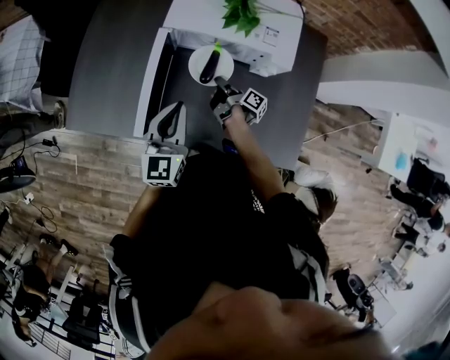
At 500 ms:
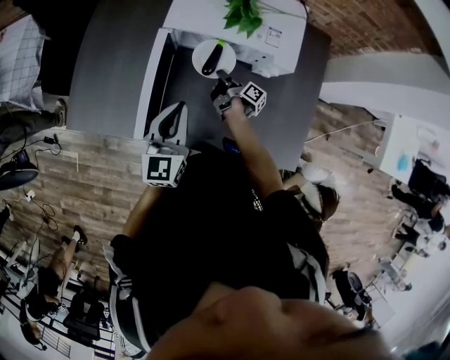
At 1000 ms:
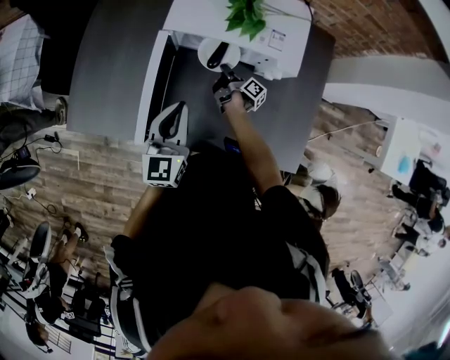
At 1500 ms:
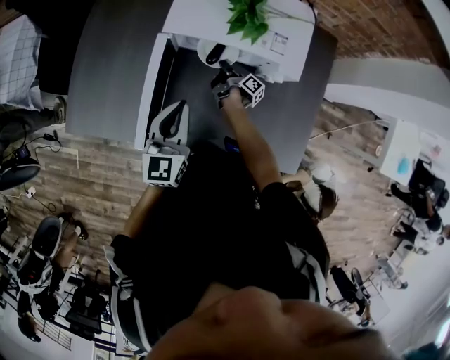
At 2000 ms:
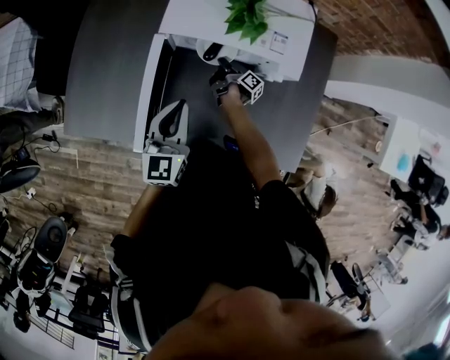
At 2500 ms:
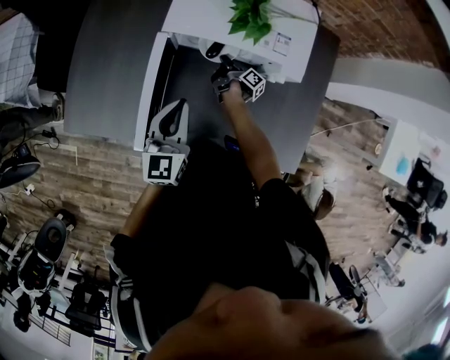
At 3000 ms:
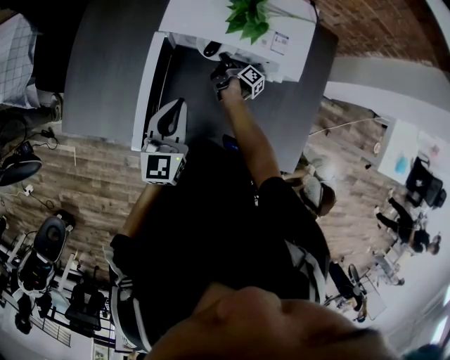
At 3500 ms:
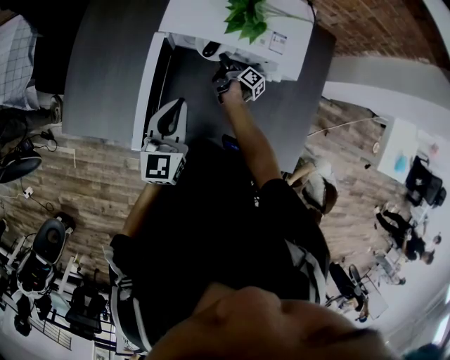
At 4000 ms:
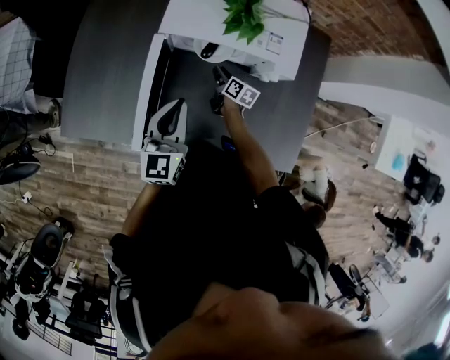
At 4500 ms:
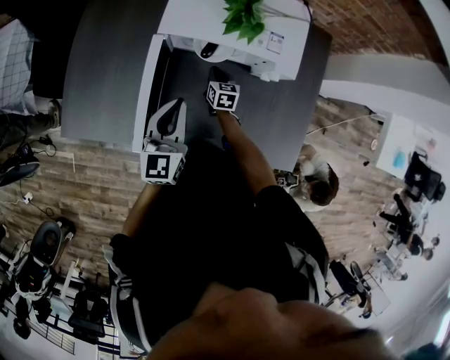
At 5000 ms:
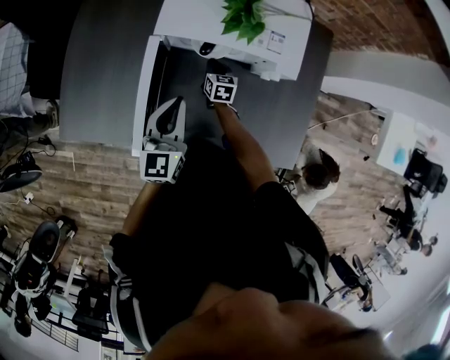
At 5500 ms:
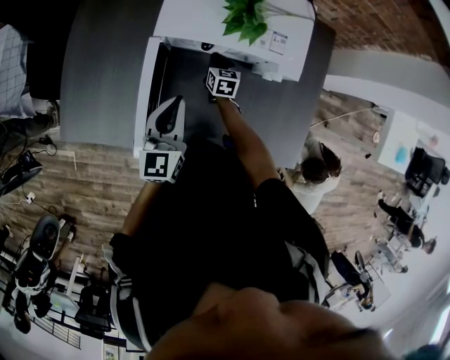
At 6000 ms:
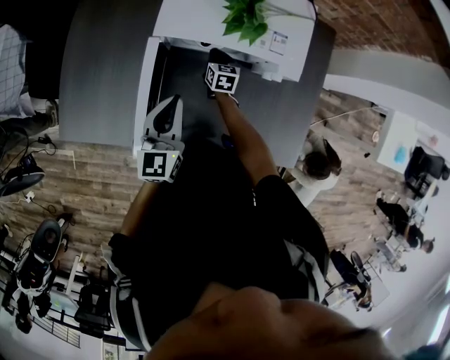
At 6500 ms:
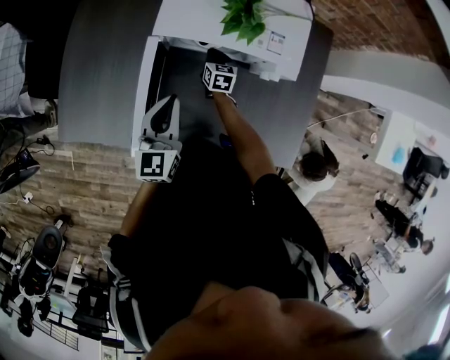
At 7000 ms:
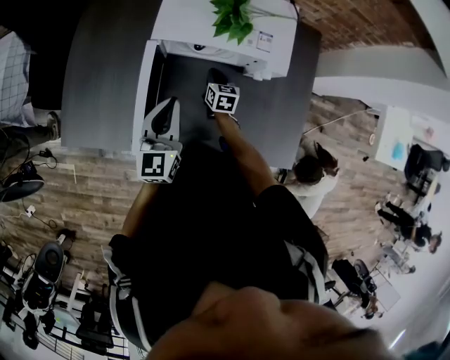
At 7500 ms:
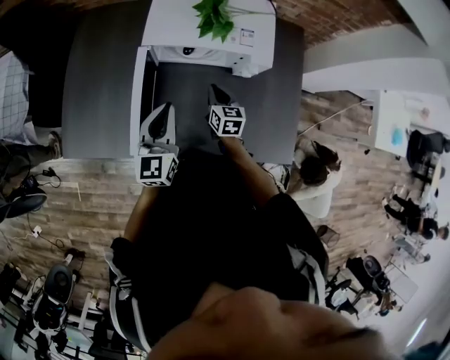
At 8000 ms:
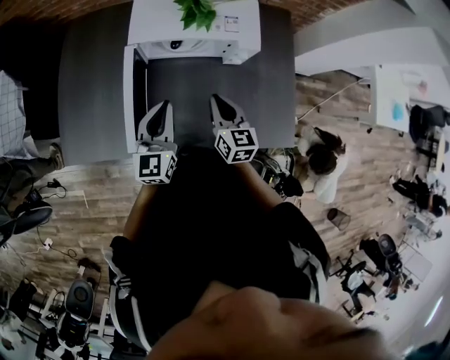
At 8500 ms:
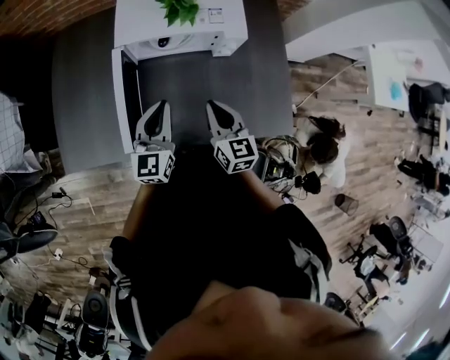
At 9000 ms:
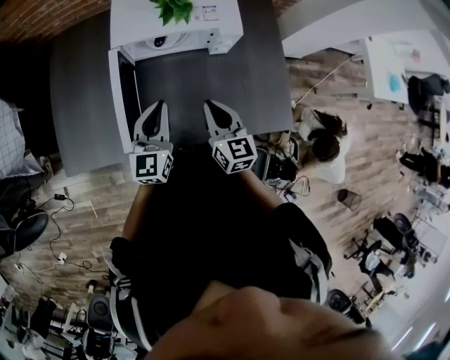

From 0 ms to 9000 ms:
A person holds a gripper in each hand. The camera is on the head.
From 7000 ms to 9000 ms: The left gripper changes place by roughly 10 cm.

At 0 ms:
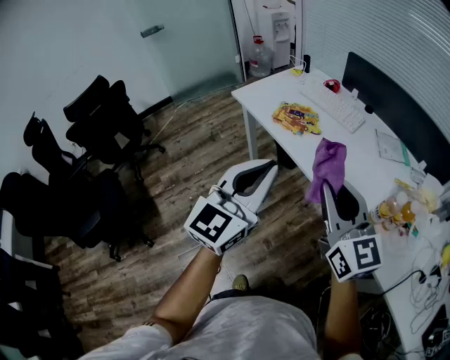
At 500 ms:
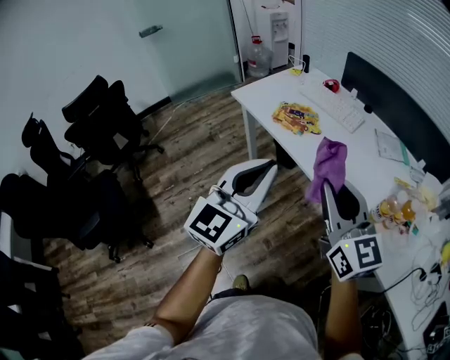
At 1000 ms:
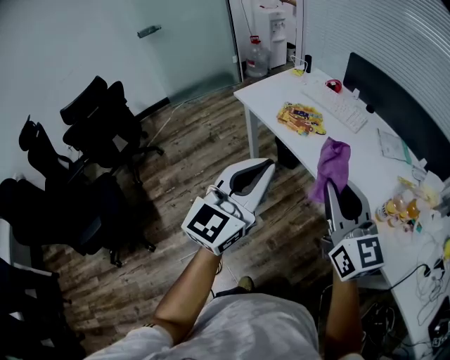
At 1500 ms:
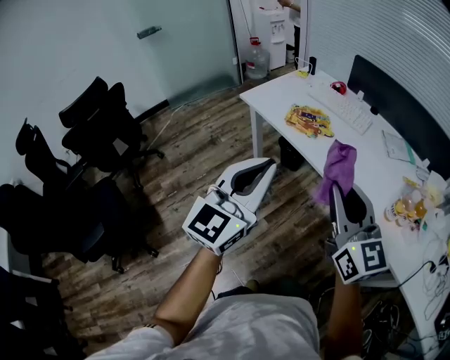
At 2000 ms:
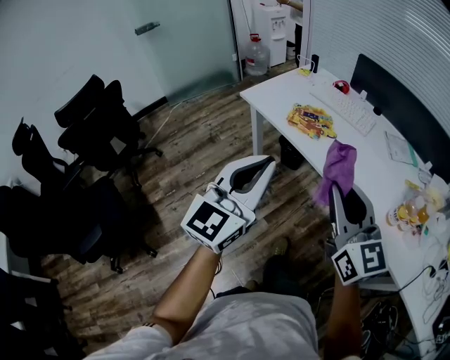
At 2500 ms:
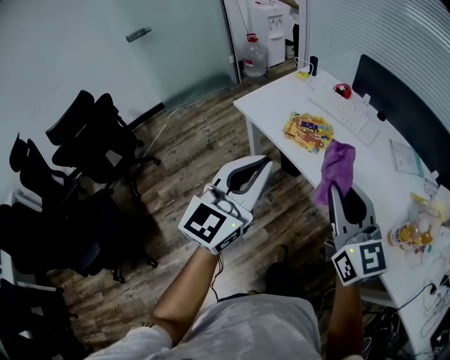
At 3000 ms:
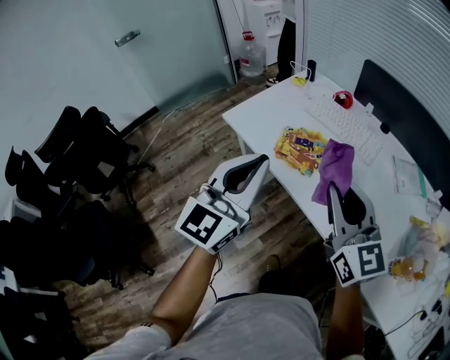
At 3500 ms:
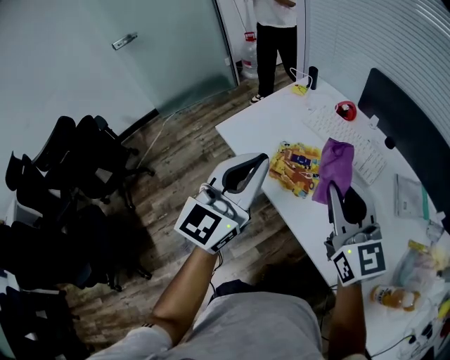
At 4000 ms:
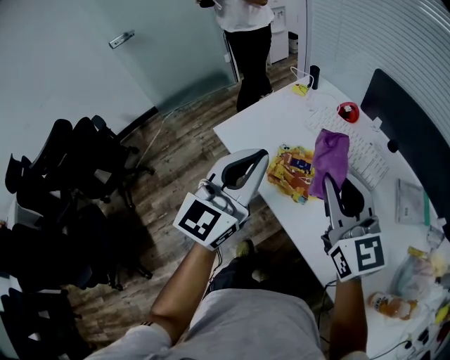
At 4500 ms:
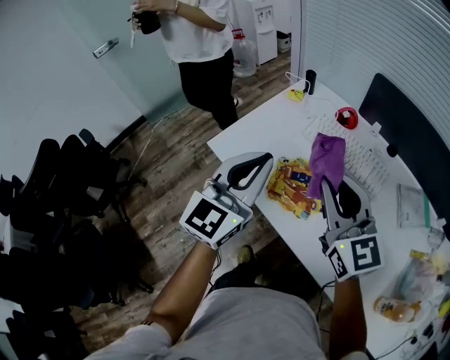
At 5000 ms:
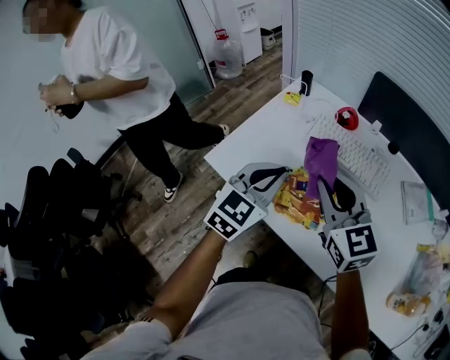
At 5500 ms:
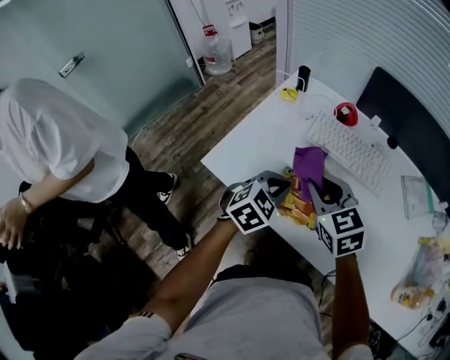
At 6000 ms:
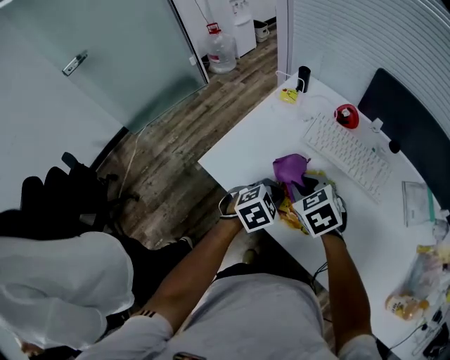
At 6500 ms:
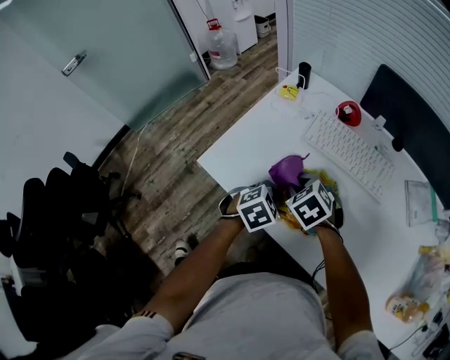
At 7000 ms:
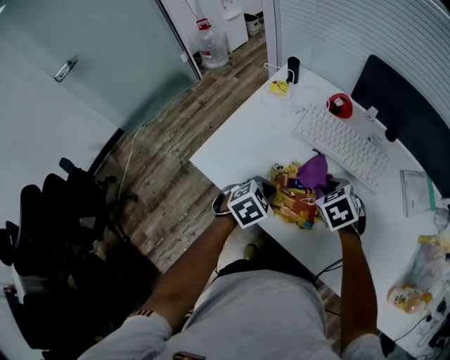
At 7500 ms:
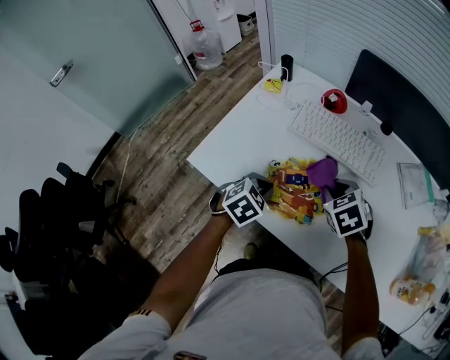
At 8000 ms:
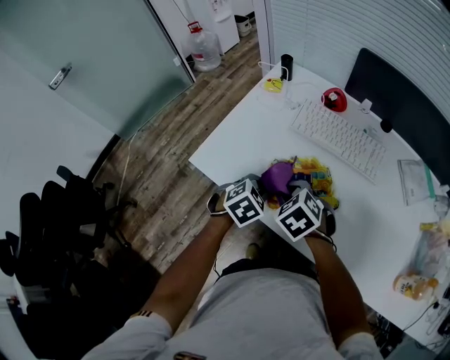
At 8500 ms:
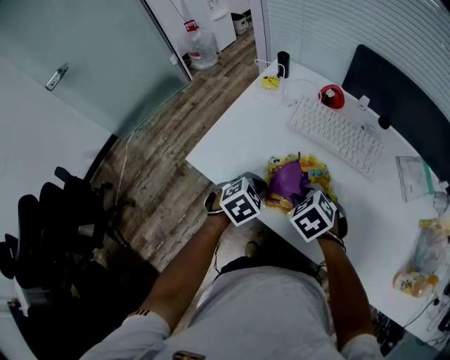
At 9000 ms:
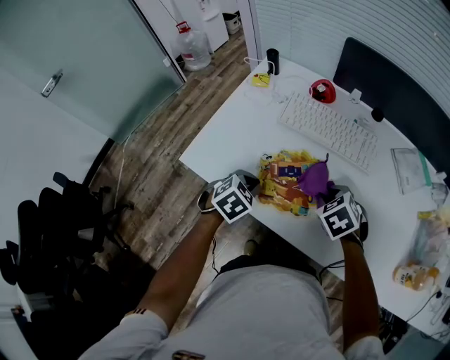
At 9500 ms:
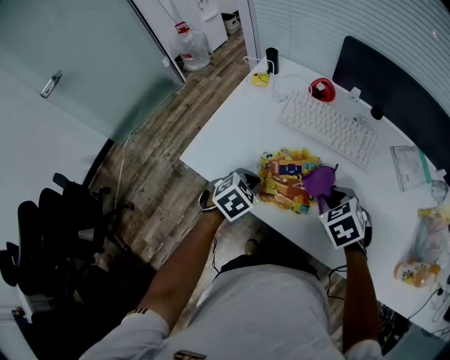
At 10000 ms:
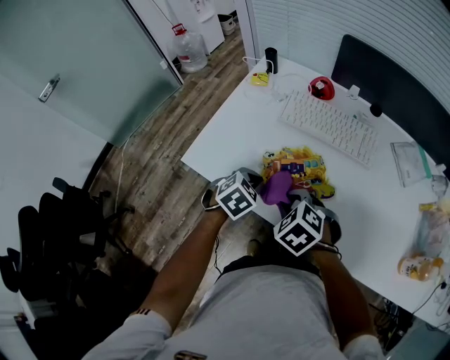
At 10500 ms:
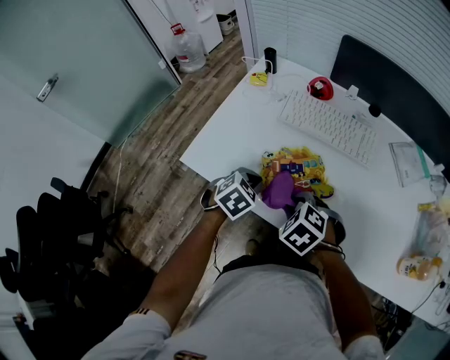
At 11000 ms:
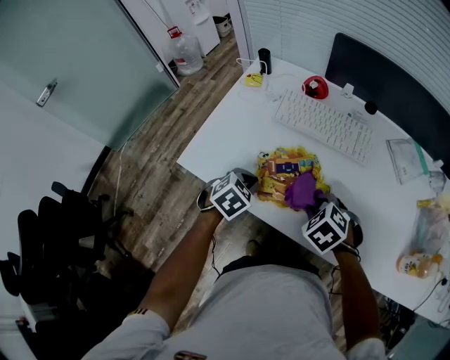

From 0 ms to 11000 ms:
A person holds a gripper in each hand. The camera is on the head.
From 0 ms to 2000 ms: The grippers both shift to the left by roughly 10 cm.
From 2000 ms to 3500 ms: The grippers both shift forward by approximately 30 cm.
From 3500 ms to 5500 ms: The left gripper is displaced downward and forward by about 30 cm, and points its fingers about 50 degrees further downward. The right gripper moves forward, downward and to the left, some 25 cm, and swivels approximately 30 degrees.
From 5500 ms to 7500 ms: The left gripper goes approximately 5 cm downward; the right gripper travels to the right and downward by roughly 15 cm, and rotates approximately 30 degrees.
From 7500 ms to 9000 ms: The right gripper travels to the left and back again, about 15 cm each way.
From 9000 ms to 11000 ms: The right gripper goes approximately 5 cm backward, and moves roughly 10 cm to the left and comes back.

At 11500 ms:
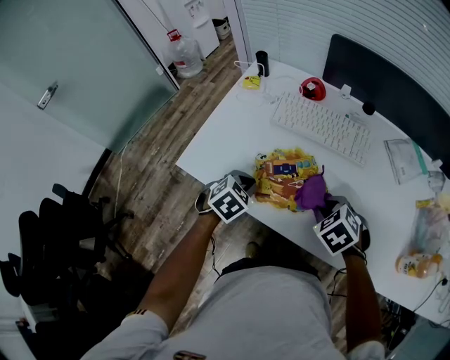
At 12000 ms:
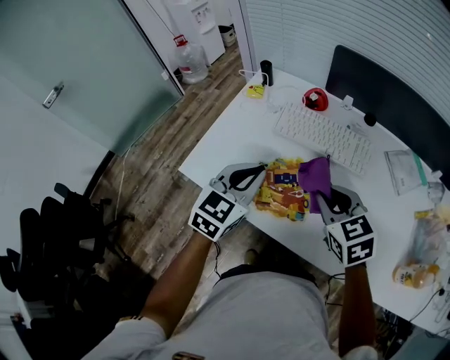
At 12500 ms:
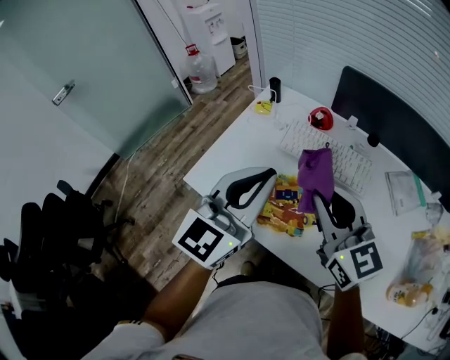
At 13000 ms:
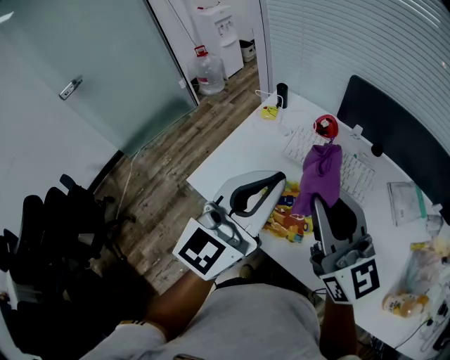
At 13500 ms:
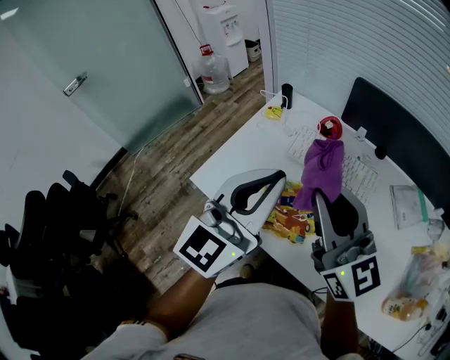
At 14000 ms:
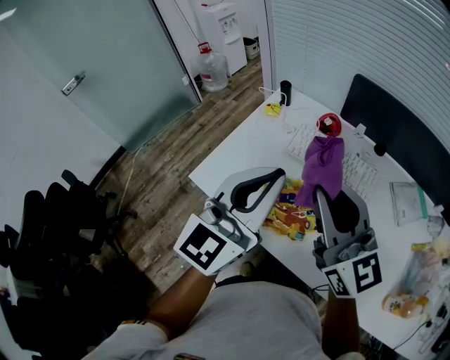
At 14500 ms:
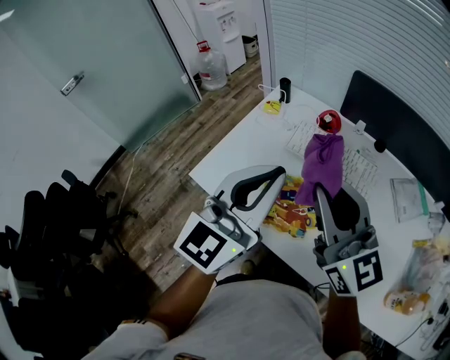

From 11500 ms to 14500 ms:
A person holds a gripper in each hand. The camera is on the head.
From 11500 ms to 13000 ms: Both grippers travel together upward, approximately 30 cm. The left gripper tilts its fingers roughly 70 degrees upward, while the right gripper angles its fingers upward, by some 70 degrees.
From 13000 ms to 14500 ms: Both grippers stay put.

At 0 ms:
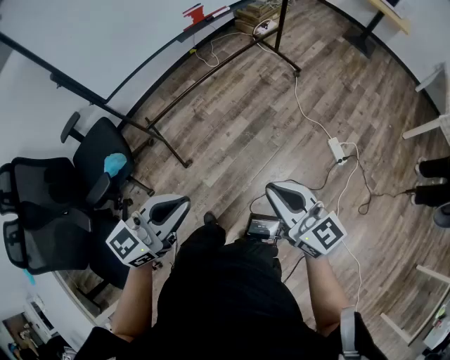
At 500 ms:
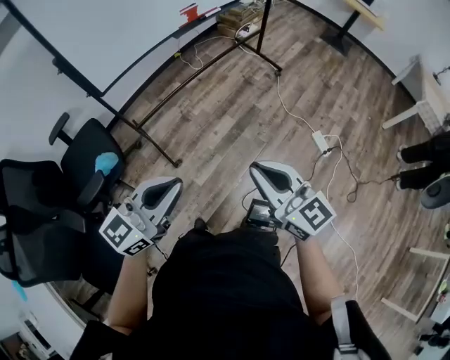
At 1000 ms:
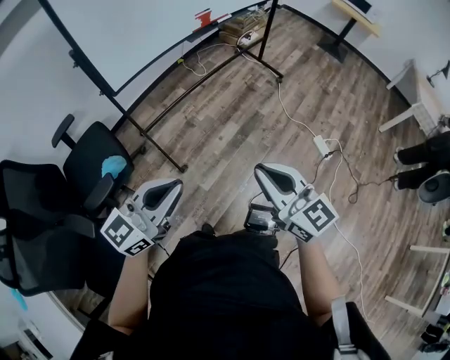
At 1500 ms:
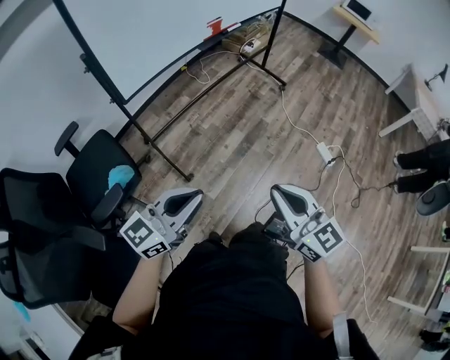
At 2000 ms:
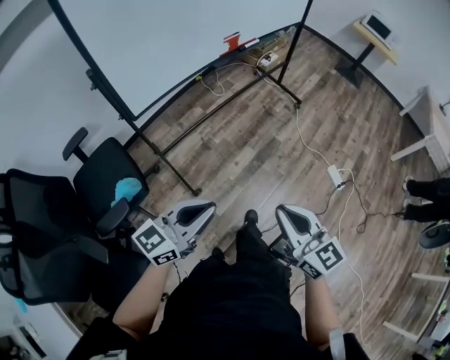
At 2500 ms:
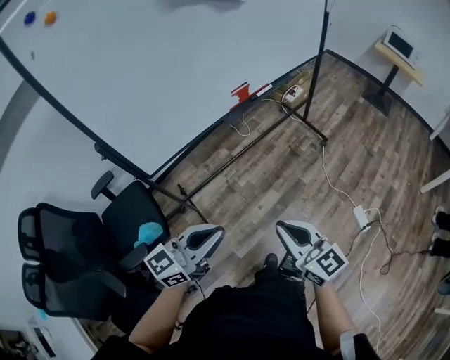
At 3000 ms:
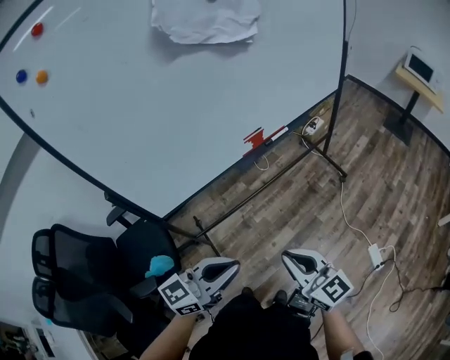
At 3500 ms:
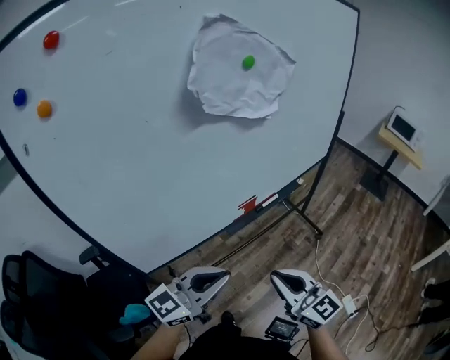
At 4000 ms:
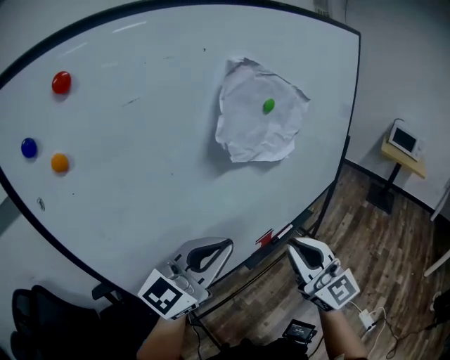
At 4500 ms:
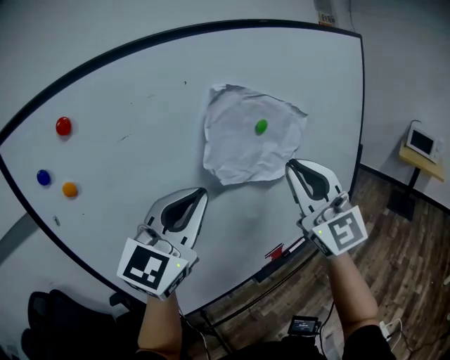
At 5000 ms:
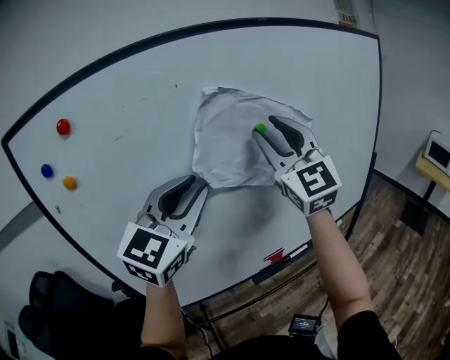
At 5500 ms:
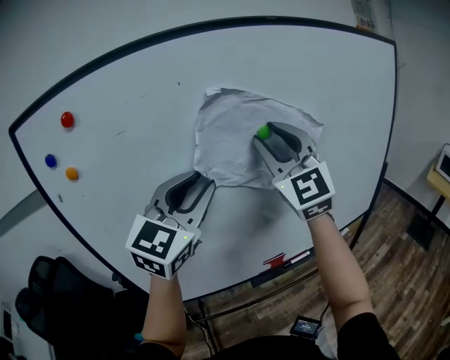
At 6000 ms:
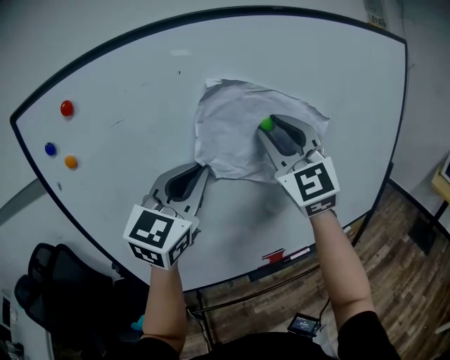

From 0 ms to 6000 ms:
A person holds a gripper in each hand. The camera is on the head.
From 0 ms to 2000 ms: Both grippers travel together to the left, roughly 15 cm.
From 2000 ms to 4000 ms: The two grippers travel together, forward, roughly 50 cm. The two grippers go about 30 cm upward. The left gripper swivels about 40 degrees, while the right gripper swivels approximately 30 degrees.
From 4000 ms to 6000 ms: The left gripper shifts about 15 cm upward and forward, rotates some 40 degrees, and opens, then closes again. Meanwhile the right gripper moves upward and forward, roughly 30 cm, swivels some 20 degrees, and opens up.
